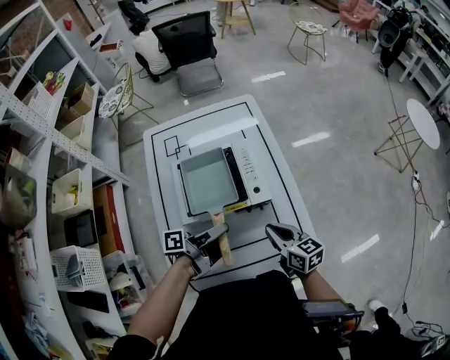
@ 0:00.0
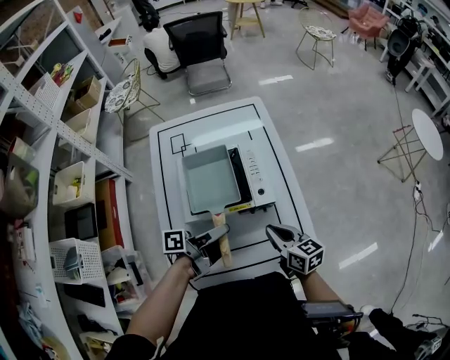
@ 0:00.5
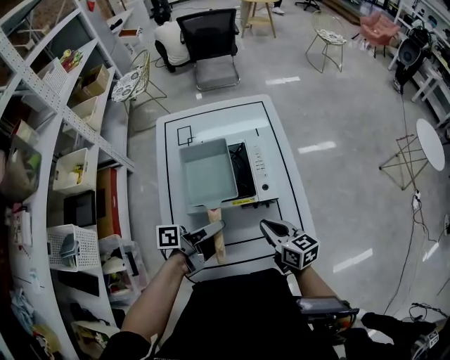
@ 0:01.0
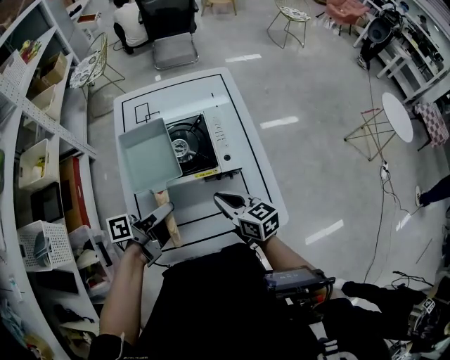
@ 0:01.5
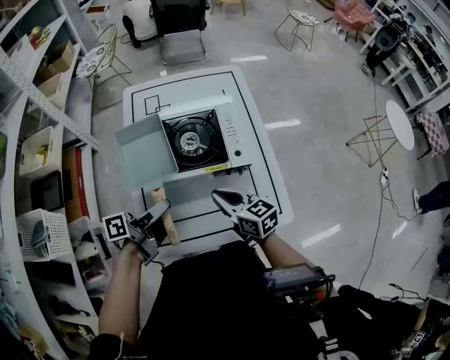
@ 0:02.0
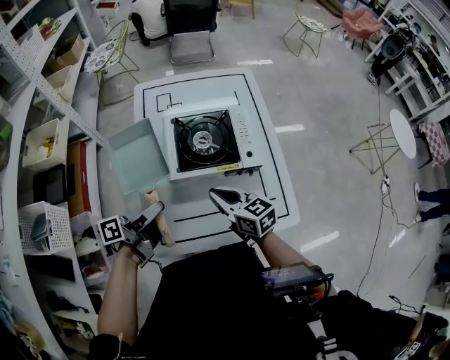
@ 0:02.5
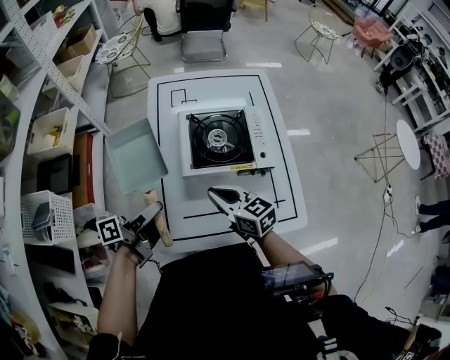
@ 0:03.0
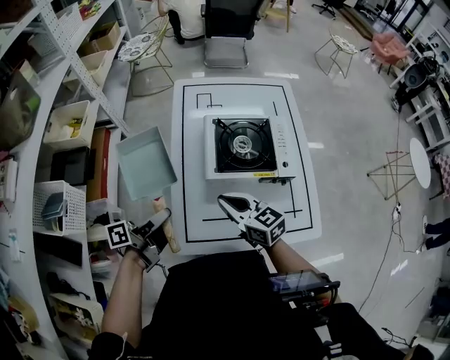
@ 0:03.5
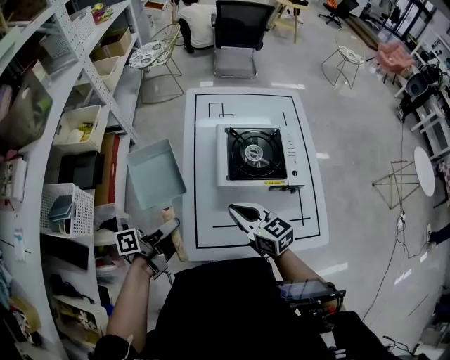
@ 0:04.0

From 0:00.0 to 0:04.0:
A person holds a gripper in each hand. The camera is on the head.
From 0:00.0 to 0:02.0: The right gripper heads to the left, covering some 10 cm. Meanwhile the left gripper shifts roughly 10 cm to the left and backward.
From 0:02.0 to 0:04.0: Both grippers move to the left, some 15 cm.

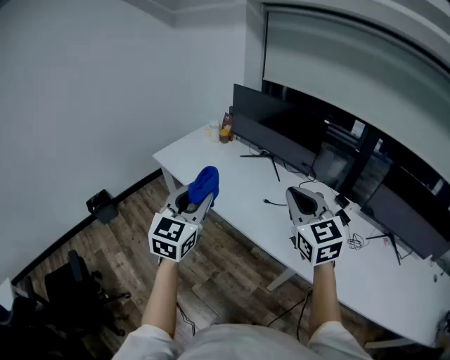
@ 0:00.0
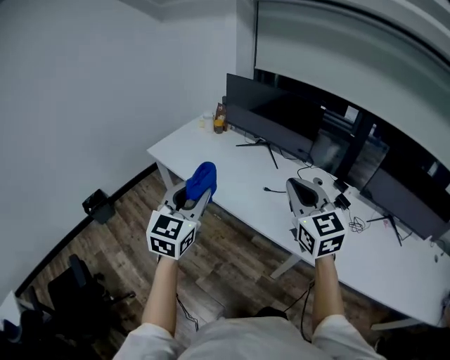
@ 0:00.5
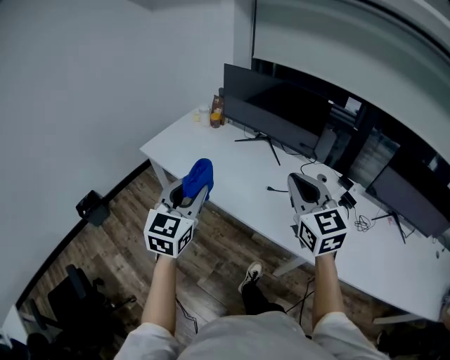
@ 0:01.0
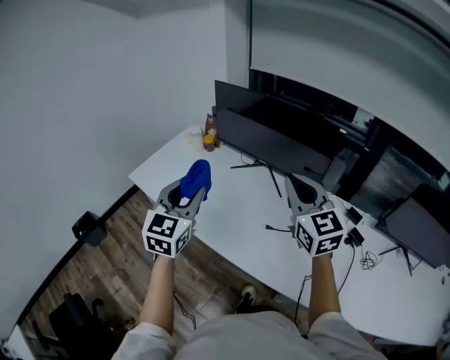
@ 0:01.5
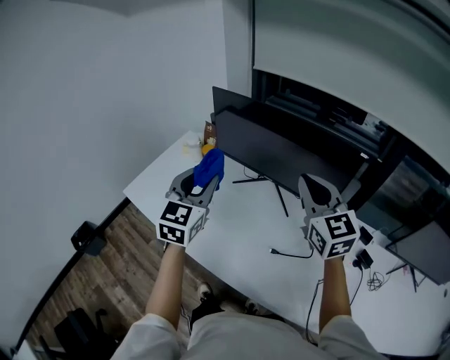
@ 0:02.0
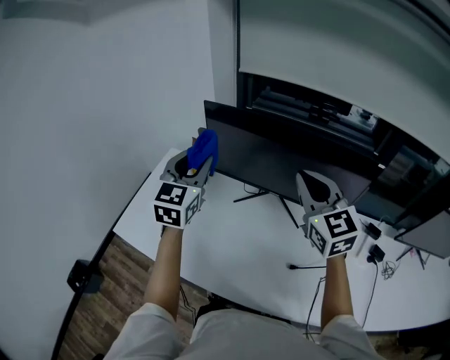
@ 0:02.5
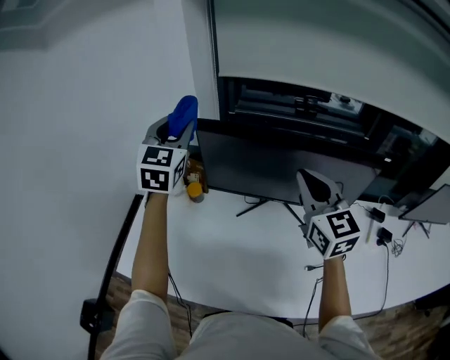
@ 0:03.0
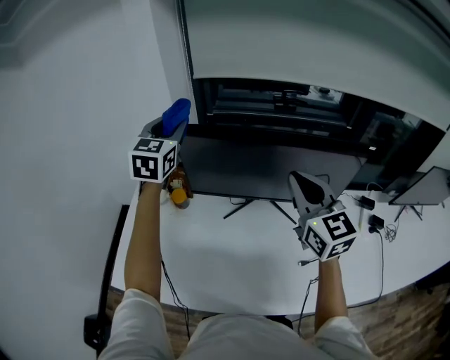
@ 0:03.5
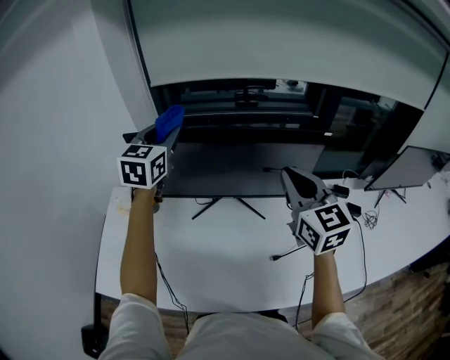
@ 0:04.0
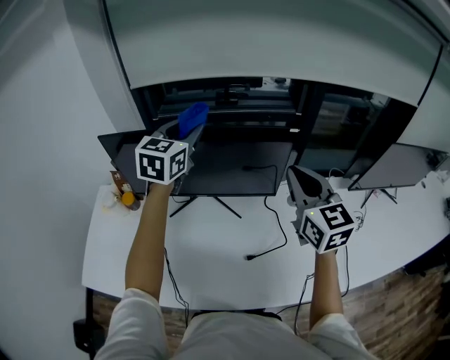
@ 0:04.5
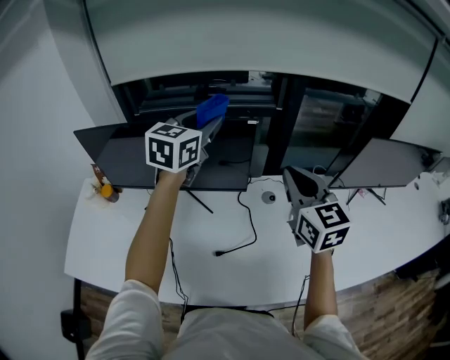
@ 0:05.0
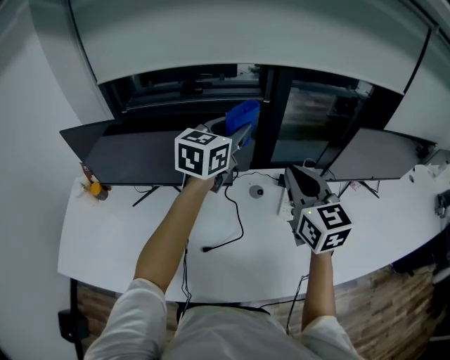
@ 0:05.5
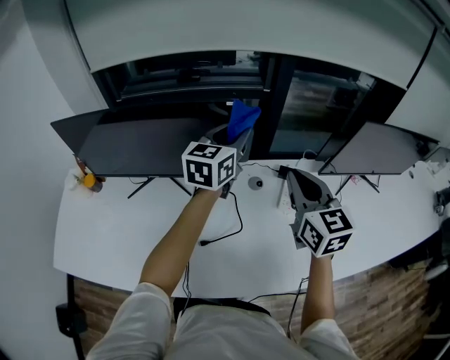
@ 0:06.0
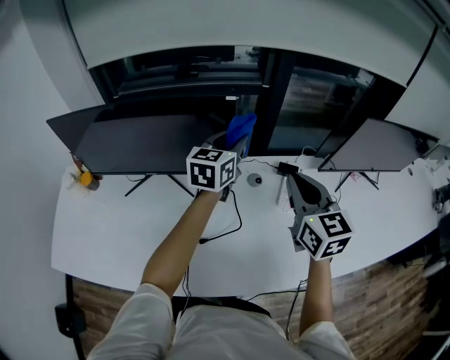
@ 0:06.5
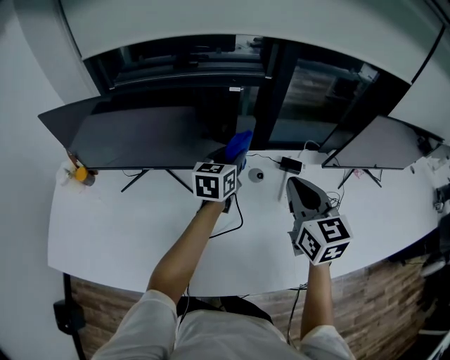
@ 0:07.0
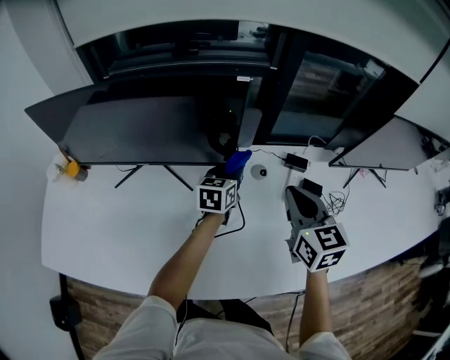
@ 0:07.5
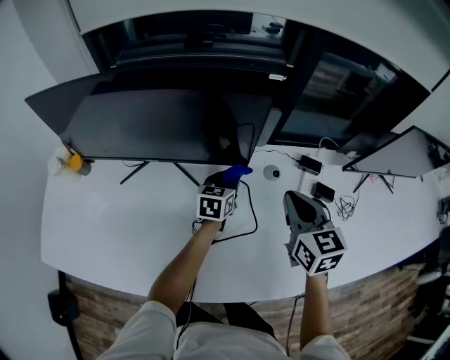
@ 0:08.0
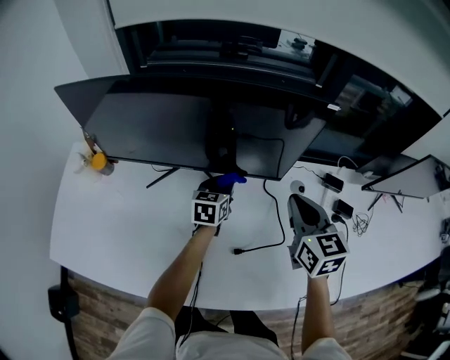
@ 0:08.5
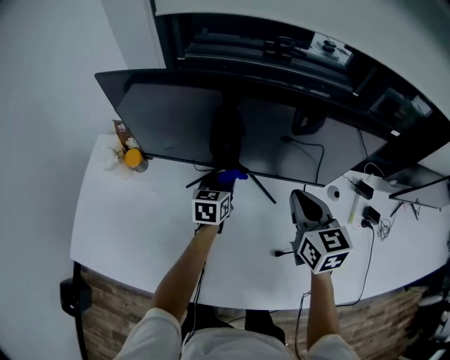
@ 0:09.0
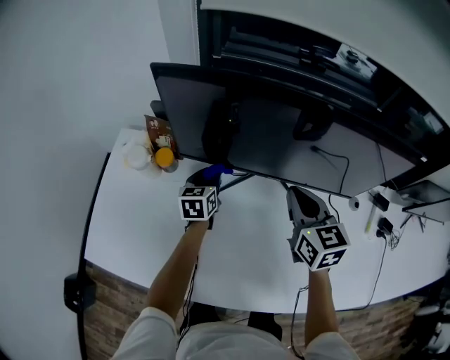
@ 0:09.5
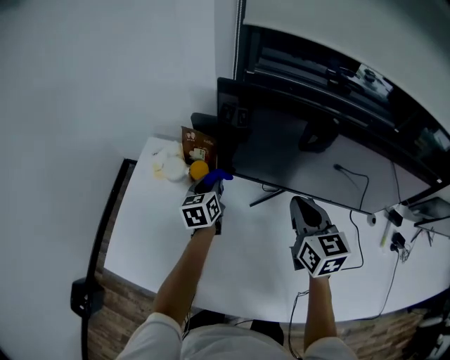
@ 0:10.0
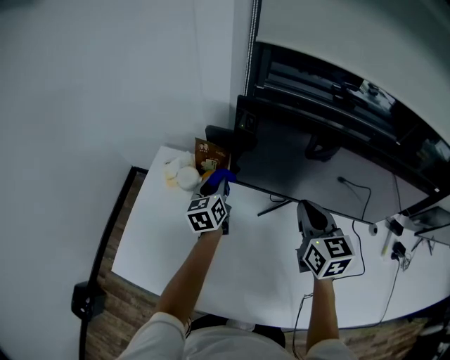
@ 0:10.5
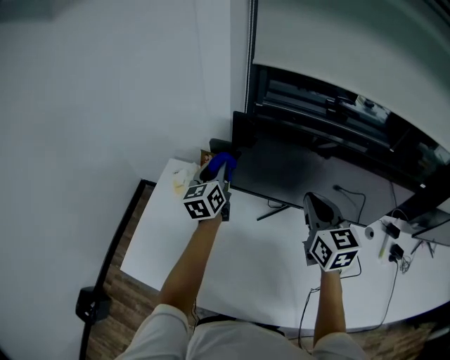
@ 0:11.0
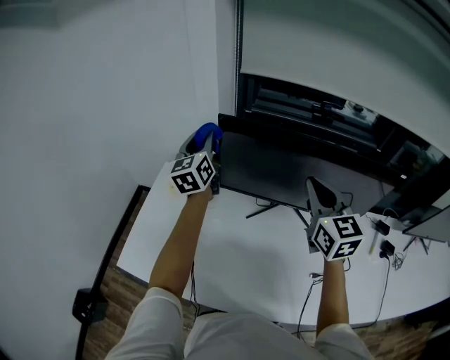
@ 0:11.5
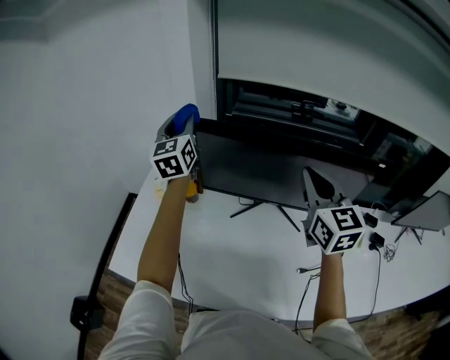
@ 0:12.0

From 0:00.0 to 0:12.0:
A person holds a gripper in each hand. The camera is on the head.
From 0:00.0 to 0:02.0: The two grippers travel together, forward, approximately 40 cm.
From 0:02.0 to 0:04.0: The right gripper swivels approximately 30 degrees; the left gripper ends up approximately 35 cm from where it was, and rotates approximately 30 degrees.
From 0:04.0 to 0:06.0: The right gripper shifts roughly 30 cm to the right; the left gripper is displaced to the right by approximately 50 cm, and changes its angle by some 20 degrees.
From 0:06.0 to 0:08.0: The right gripper moves downward, roughly 15 cm; the left gripper heads downward, covering roughly 35 cm, and swivels some 30 degrees.
From 0:08.0 to 0:10.0: The pair of grippers is taken to the left, about 50 cm. The left gripper turns by approximately 30 degrees.
From 0:10.0 to 0:12.0: The left gripper moves upward, approximately 40 cm, and points its fingers about 30 degrees further upward. The right gripper travels upward by approximately 25 cm, and changes its angle by some 20 degrees.

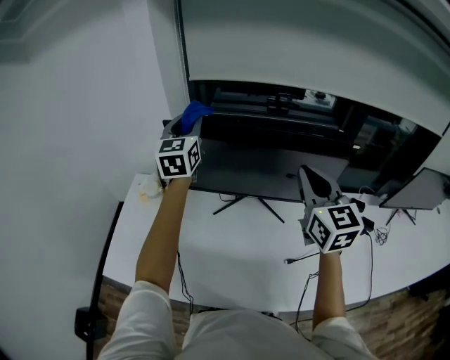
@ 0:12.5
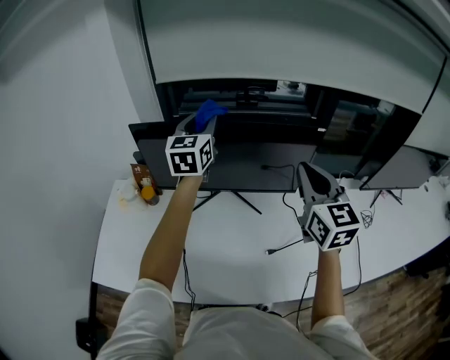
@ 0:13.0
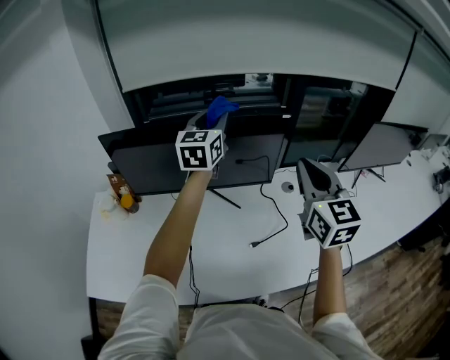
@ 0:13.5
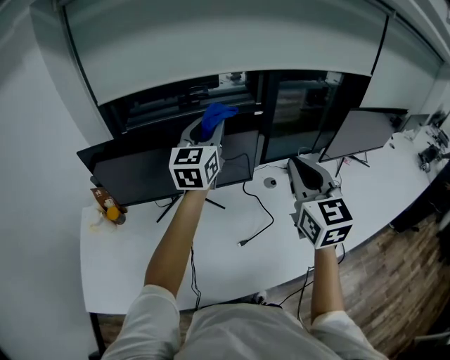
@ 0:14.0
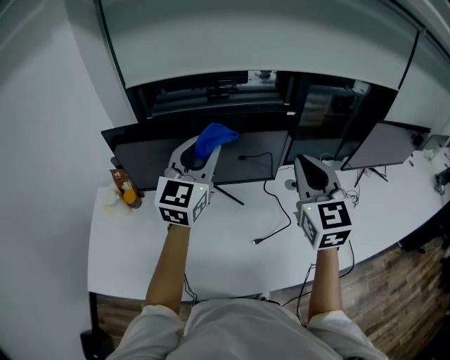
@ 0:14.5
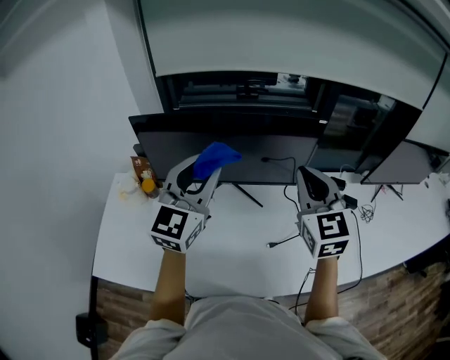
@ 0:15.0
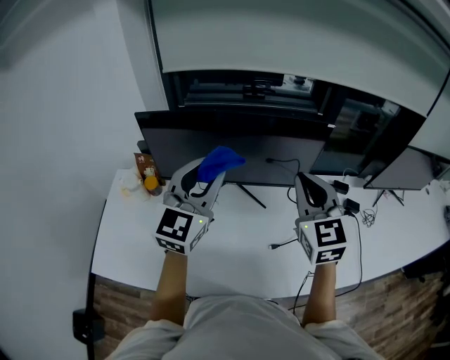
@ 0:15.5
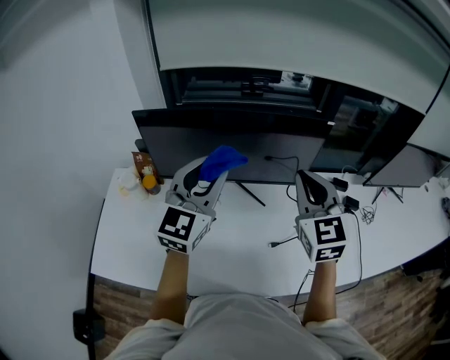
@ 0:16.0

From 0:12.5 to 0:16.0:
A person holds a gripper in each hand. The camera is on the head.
From 0:12.5 to 0:14.5: The right gripper shifts by some 15 cm. The left gripper moves roughly 30 cm, and changes its angle by about 30 degrees.
From 0:14.5 to 0:16.0: The left gripper moves to the left and backward, roughly 10 cm, while the right gripper is displaced to the left by approximately 10 cm.

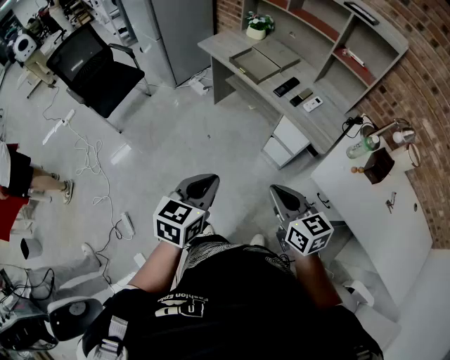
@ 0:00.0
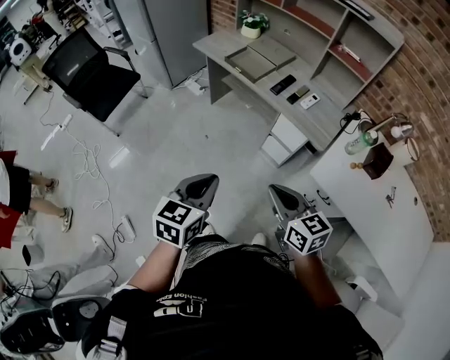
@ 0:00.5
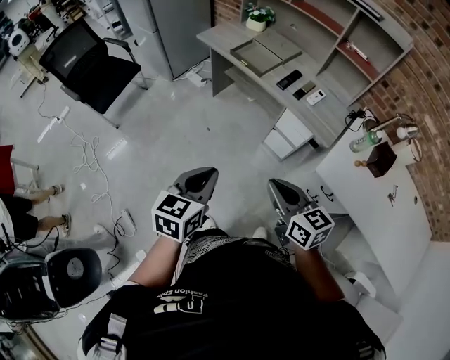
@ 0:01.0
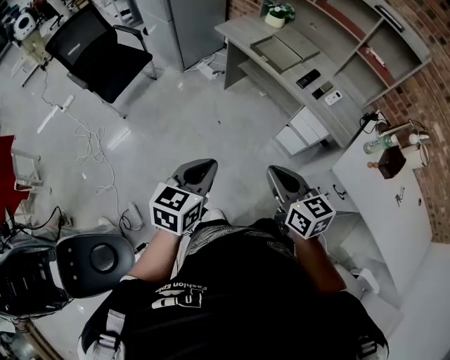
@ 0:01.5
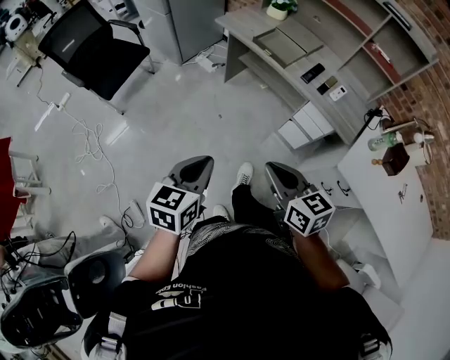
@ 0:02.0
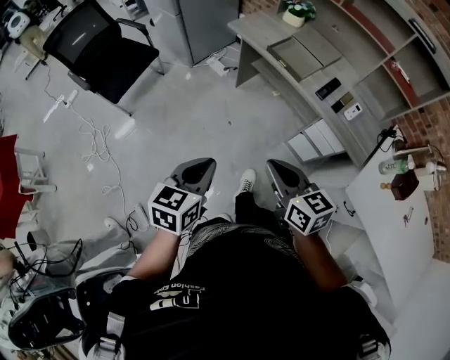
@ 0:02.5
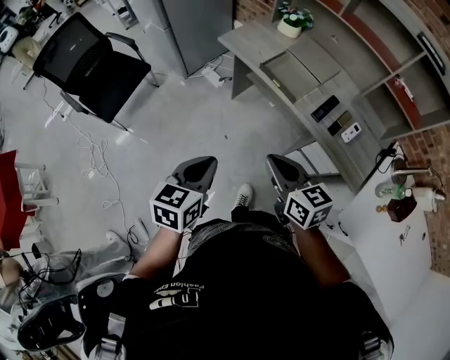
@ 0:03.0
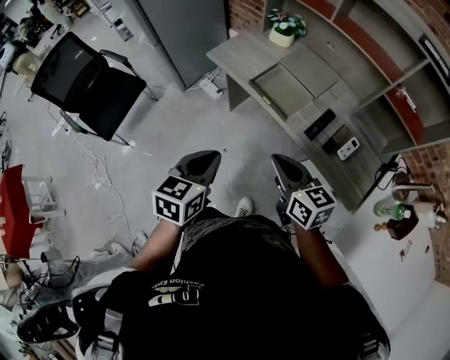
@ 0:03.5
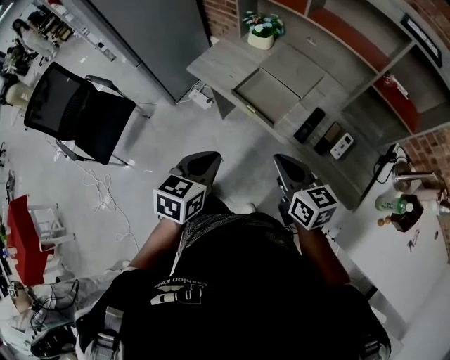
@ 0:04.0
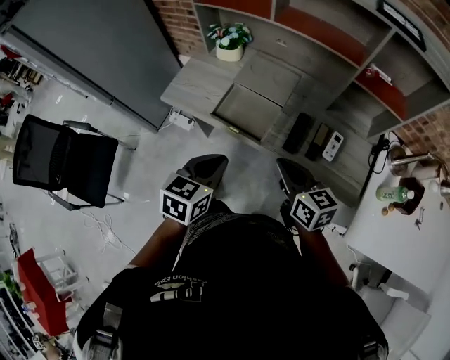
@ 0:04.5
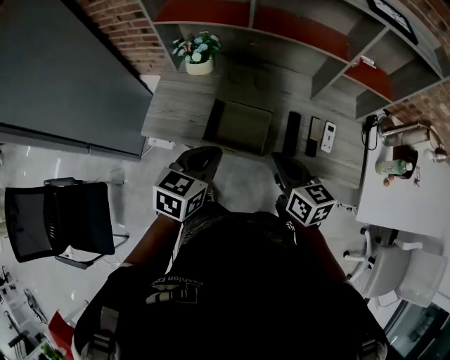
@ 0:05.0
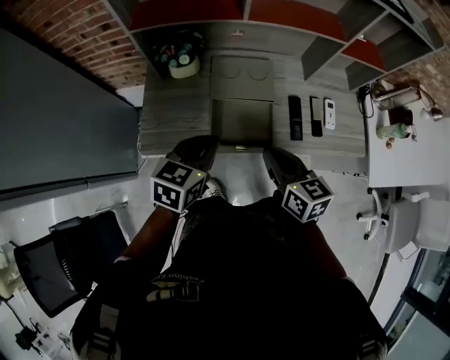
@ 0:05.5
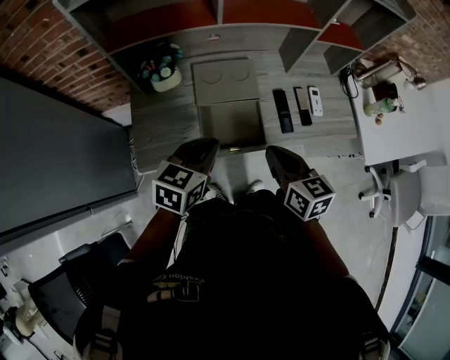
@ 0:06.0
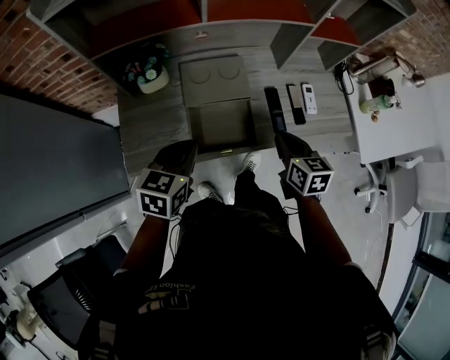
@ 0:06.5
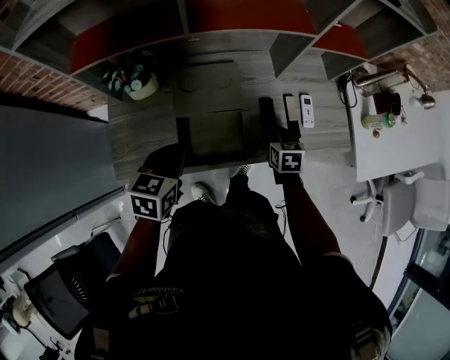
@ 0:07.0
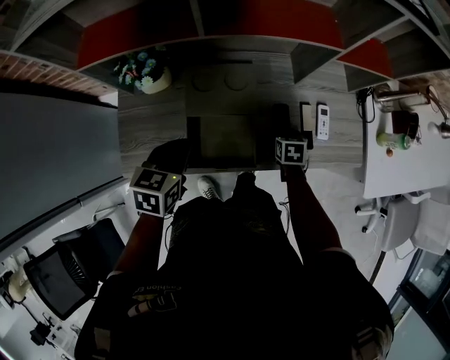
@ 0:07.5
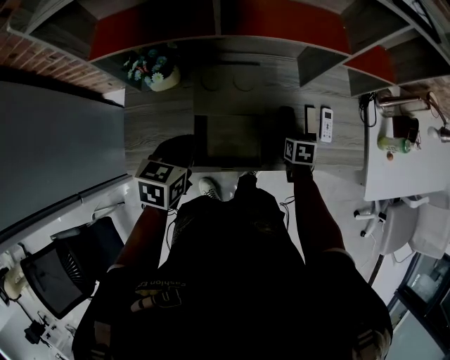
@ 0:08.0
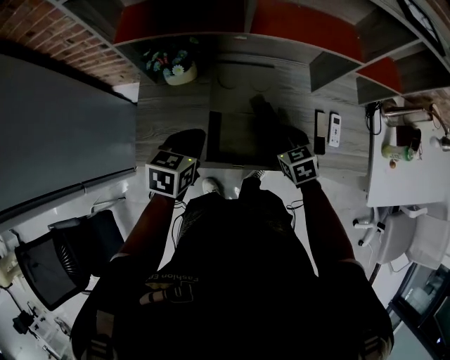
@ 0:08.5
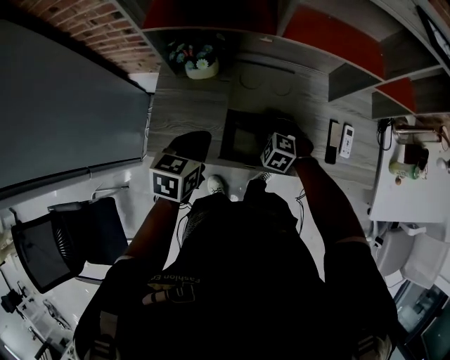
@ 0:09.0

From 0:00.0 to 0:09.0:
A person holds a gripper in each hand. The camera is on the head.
From 0:00.0 to 0:02.0: The two grippers go roughly 15 cm to the left.
From 0:02.0 to 0:04.5: The pair of grippers is taken forward, about 50 cm. The right gripper swivels approximately 20 degrees; the left gripper swivels about 30 degrees.
From 0:04.5 to 0:07.0: The right gripper moves downward, approximately 20 cm, points its fingers approximately 30 degrees further downward, and opens up. Meanwhile the left gripper moves about 25 cm, and rotates approximately 30 degrees.
From 0:07.0 to 0:09.0: The right gripper moves to the left, about 20 cm, twists roughly 80 degrees counterclockwise, seen from behind, and opens up. Meanwhile the left gripper goes about 5 cm to the left.
